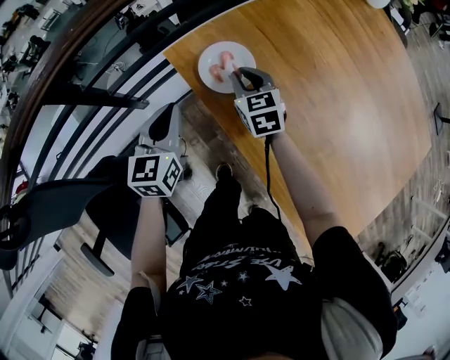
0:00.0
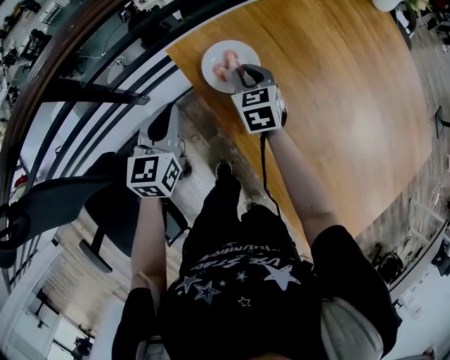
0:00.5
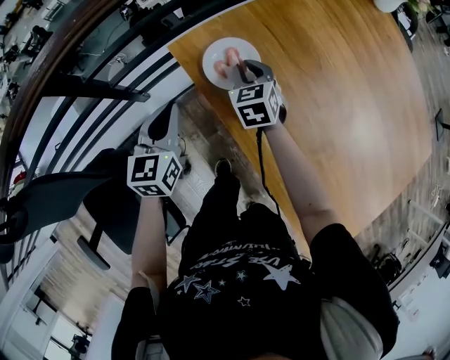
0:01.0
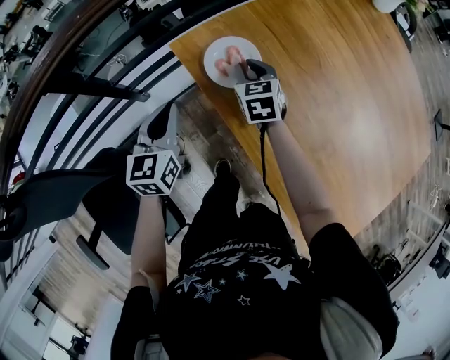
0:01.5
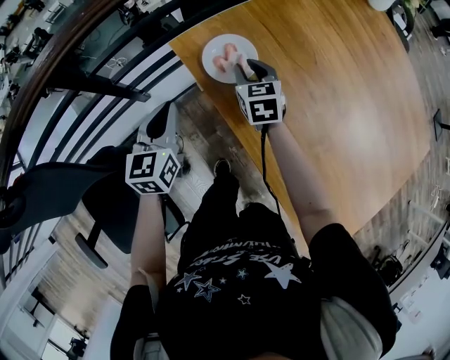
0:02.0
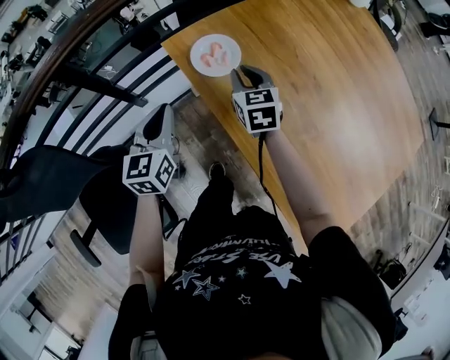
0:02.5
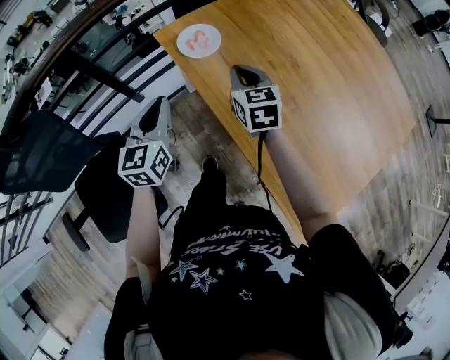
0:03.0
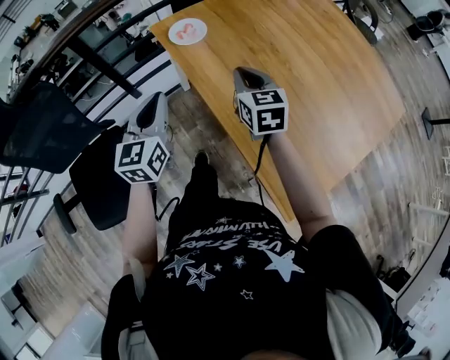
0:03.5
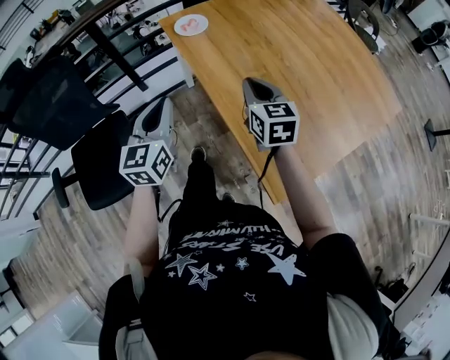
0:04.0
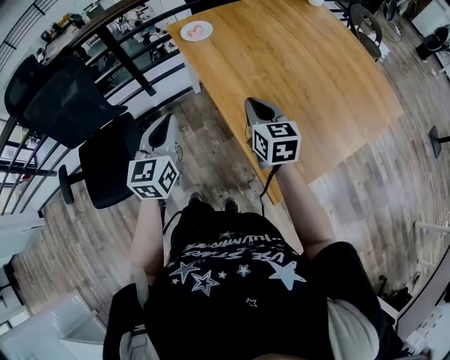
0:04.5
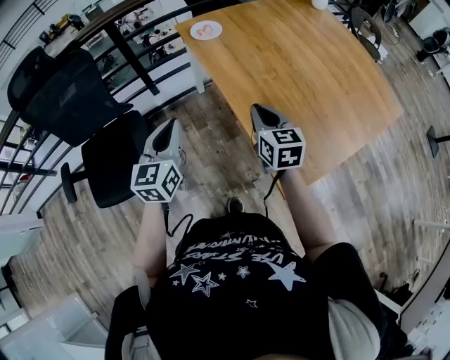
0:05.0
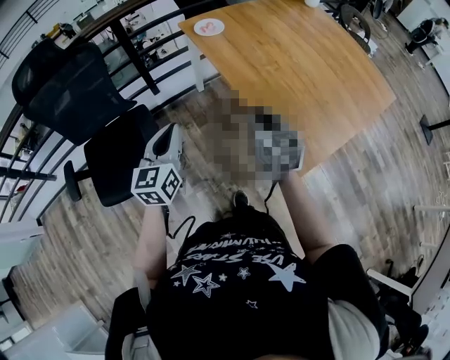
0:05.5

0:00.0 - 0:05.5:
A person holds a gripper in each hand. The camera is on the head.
0:00.0 - 0:02.0: The grippers make only small movements.
0:02.0 - 0:03.5: The two grippers go about 35 cm backward, upward and to the right. The right gripper closes its fingers.
0:03.5 - 0:05.5: The two grippers go some 30 cm backward.

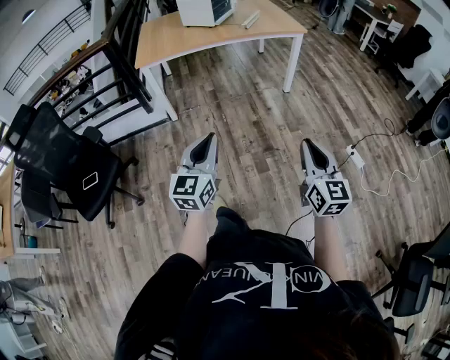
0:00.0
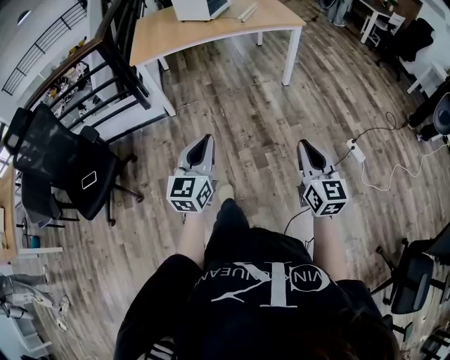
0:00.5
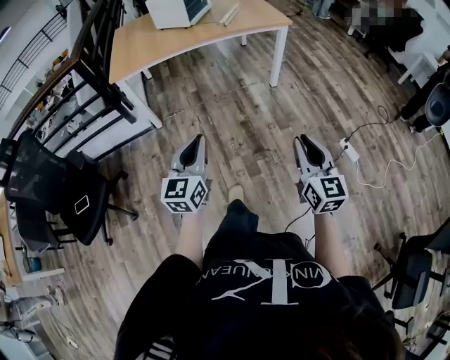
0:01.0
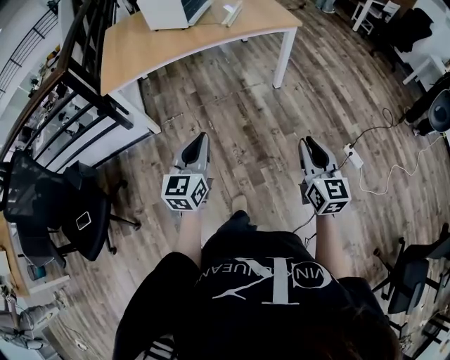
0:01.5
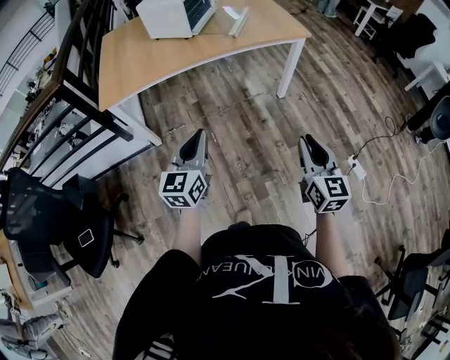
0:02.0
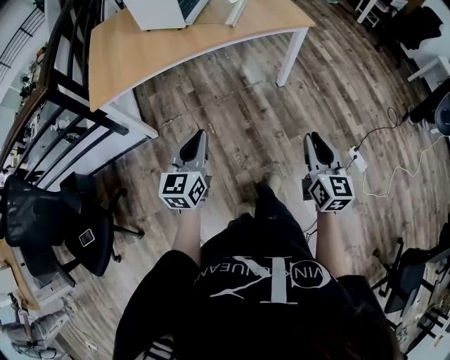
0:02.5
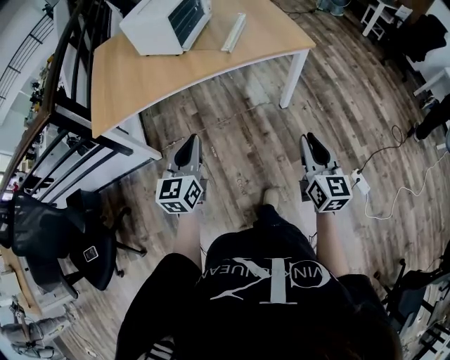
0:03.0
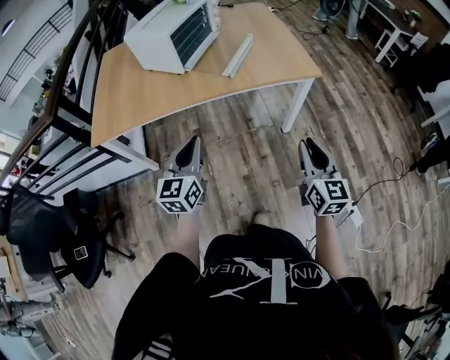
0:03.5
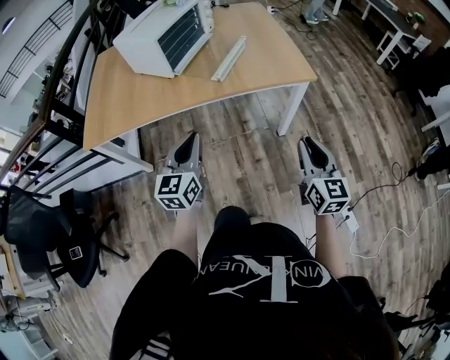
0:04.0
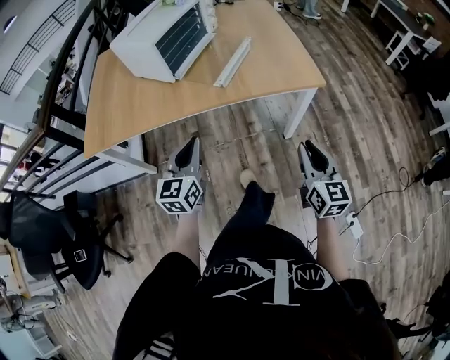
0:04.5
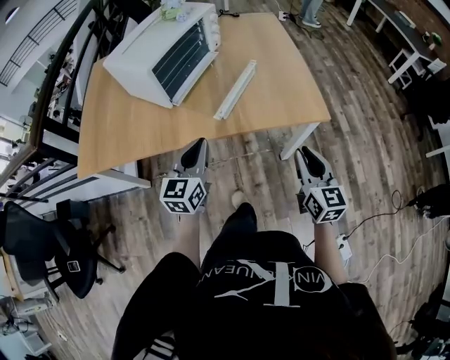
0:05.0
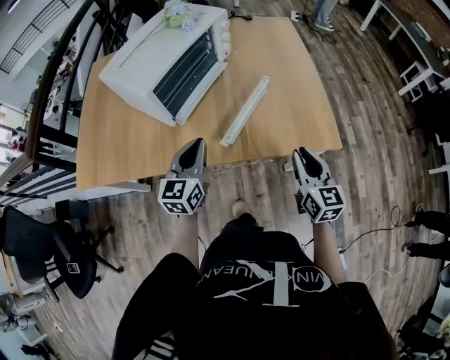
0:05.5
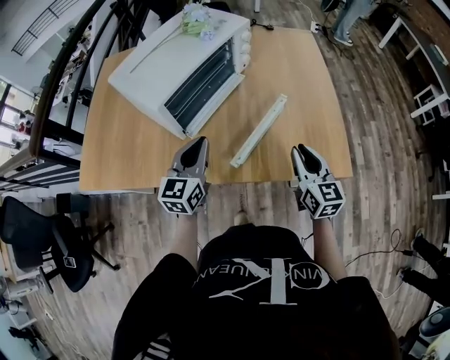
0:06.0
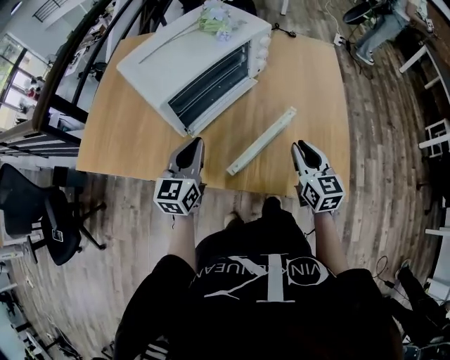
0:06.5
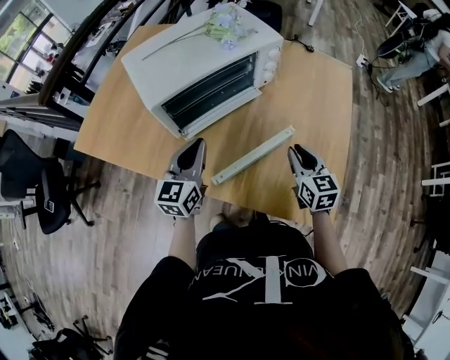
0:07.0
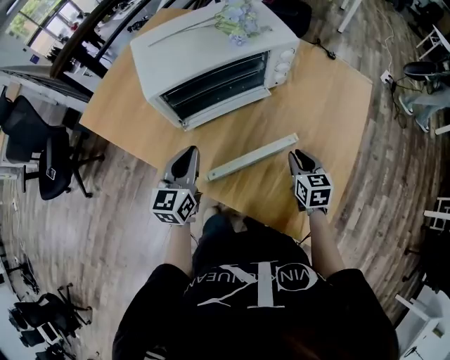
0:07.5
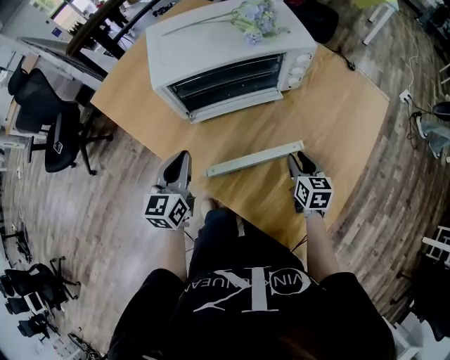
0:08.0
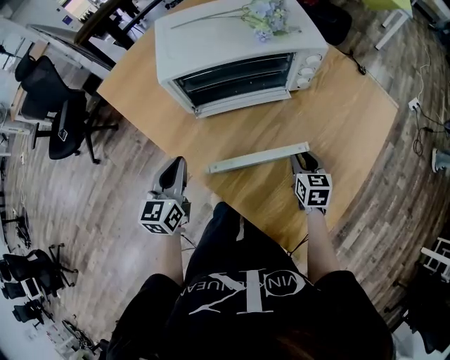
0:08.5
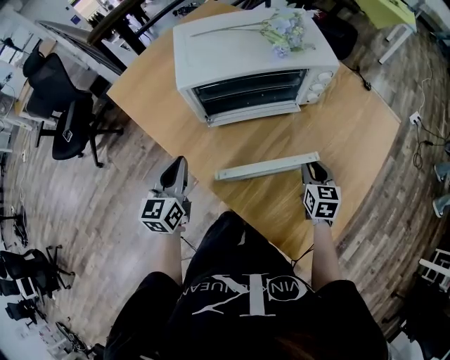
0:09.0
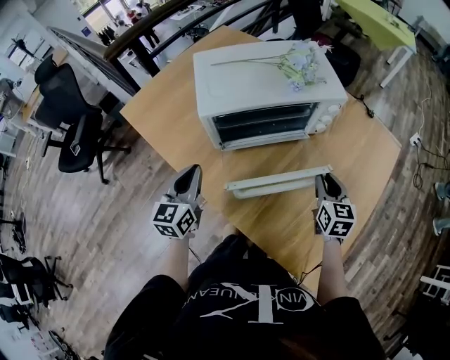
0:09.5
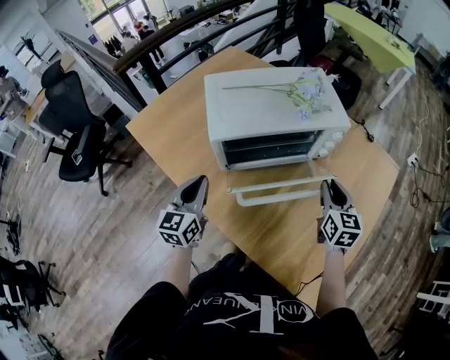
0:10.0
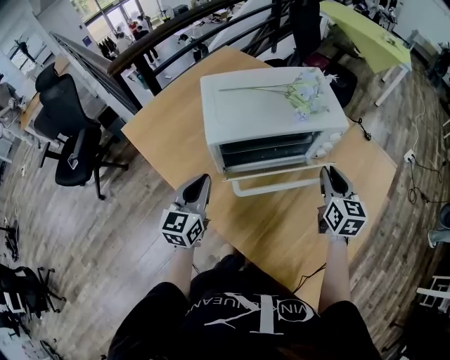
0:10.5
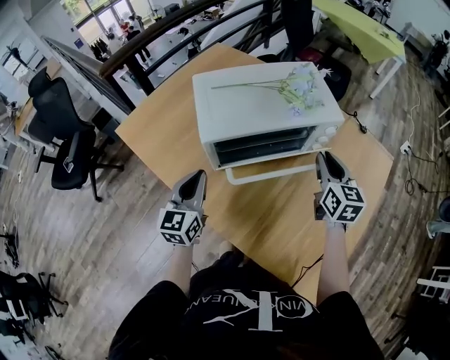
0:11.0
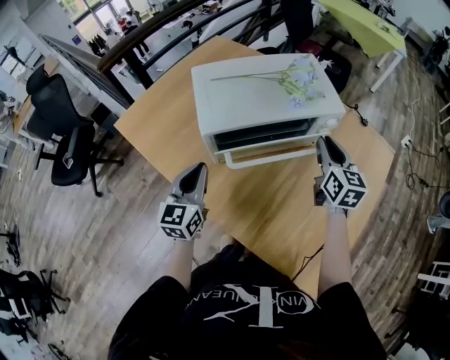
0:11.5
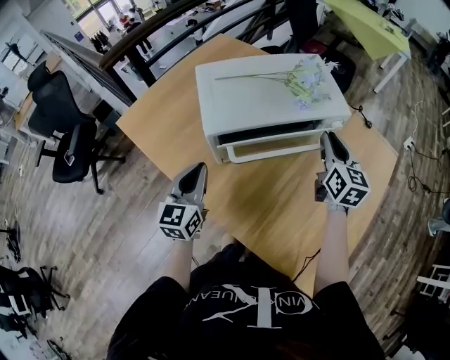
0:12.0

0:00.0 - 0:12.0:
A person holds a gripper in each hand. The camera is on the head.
0:00.0 - 0:02.0: The two grippers go some 35 cm forward.
0:02.0 - 0:04.0: Both grippers move forward and to the right, roughly 30 cm.
0:04.0 - 0:06.0: The grippers both shift forward by roughly 35 cm.
0:06.0 - 0:08.0: The left gripper swivels about 40 degrees. Meanwhile the right gripper shifts by approximately 25 cm, and swivels approximately 40 degrees.
0:08.0 - 0:10.0: The left gripper heads to the left and forward, covering about 10 cm; the right gripper is displaced upward and forward by about 20 cm.
0:10.0 - 0:12.0: The right gripper goes about 10 cm forward and upward.

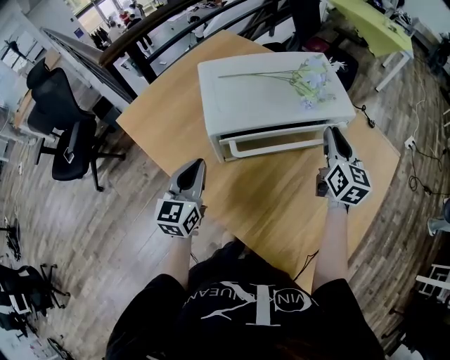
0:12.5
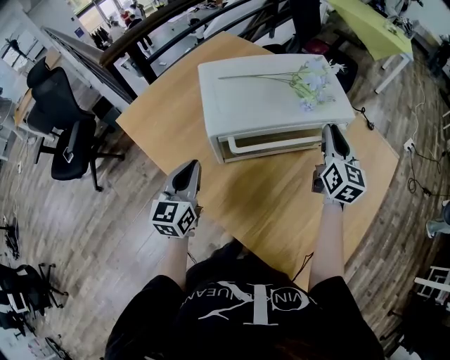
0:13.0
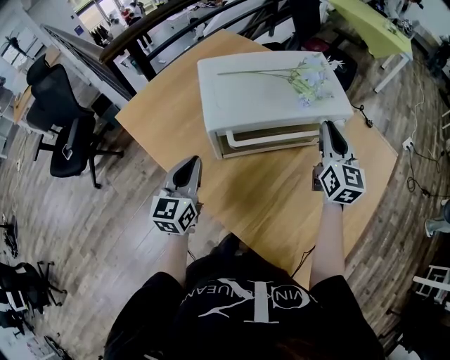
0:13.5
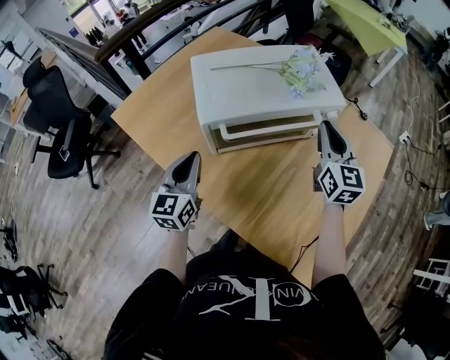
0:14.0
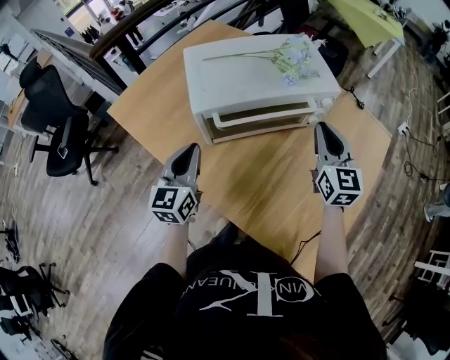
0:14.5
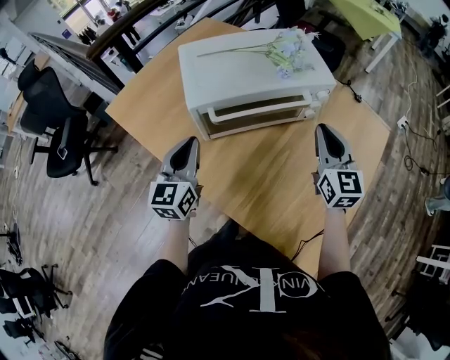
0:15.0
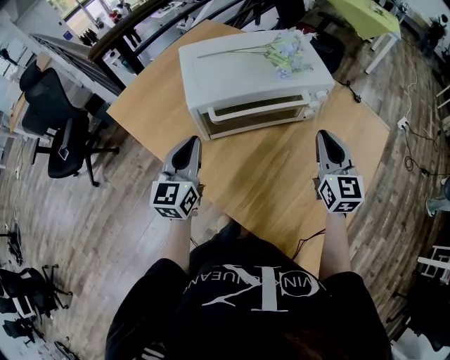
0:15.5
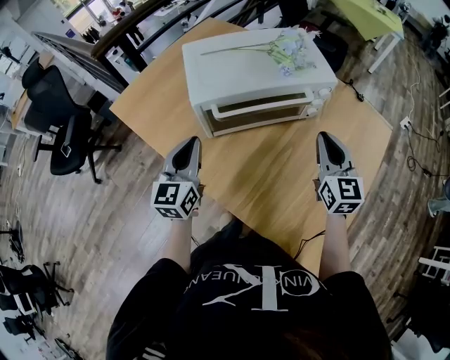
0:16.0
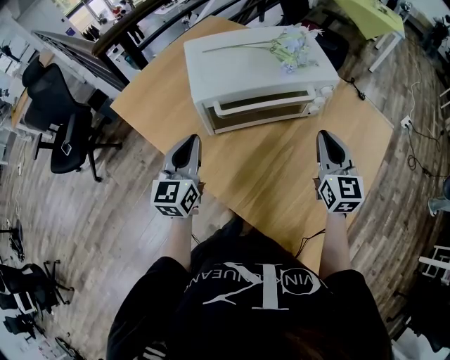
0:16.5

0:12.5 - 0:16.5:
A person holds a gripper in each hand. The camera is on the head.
0:12.5 - 0:14.5: The right gripper heads backward, covering about 5 cm.
0:14.5 - 0:16.5: The right gripper ends up approximately 5 cm from where it was.

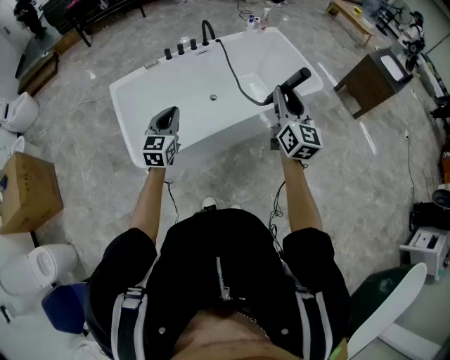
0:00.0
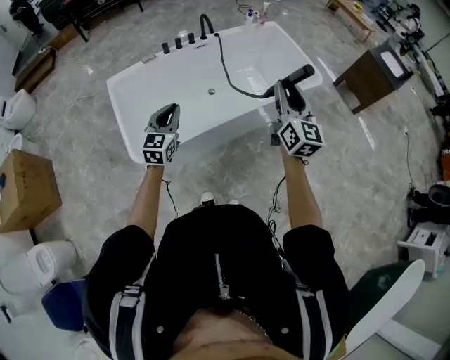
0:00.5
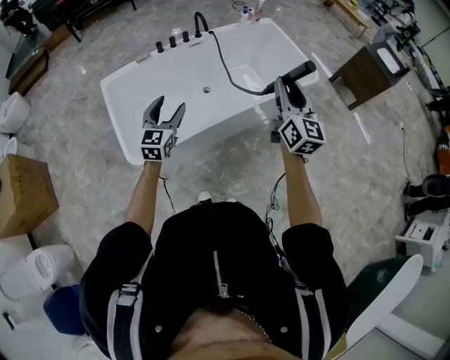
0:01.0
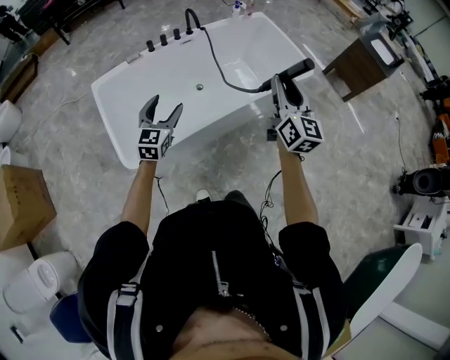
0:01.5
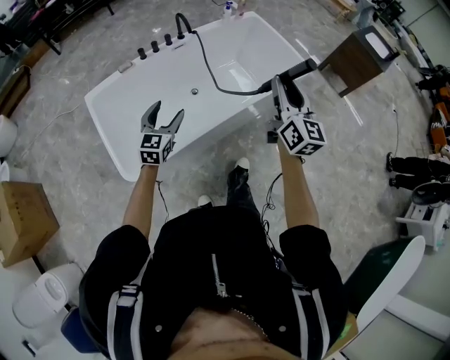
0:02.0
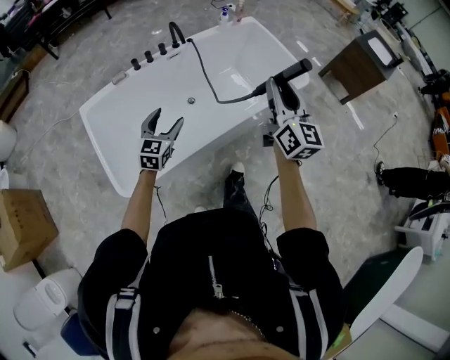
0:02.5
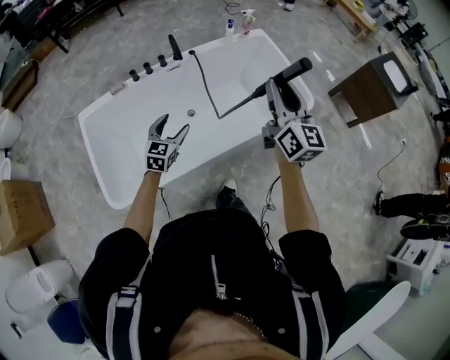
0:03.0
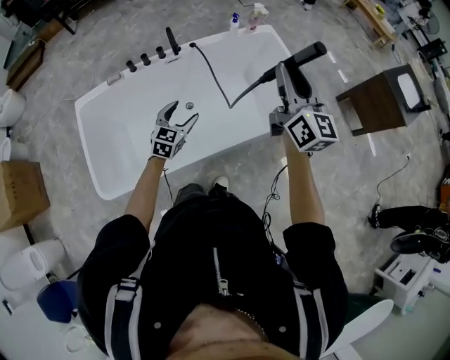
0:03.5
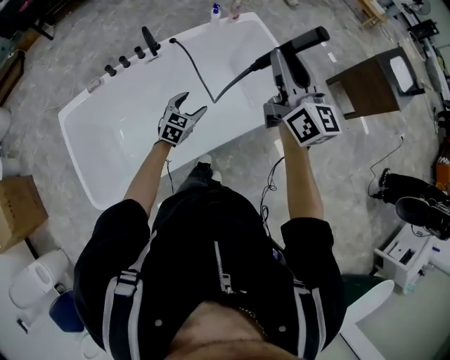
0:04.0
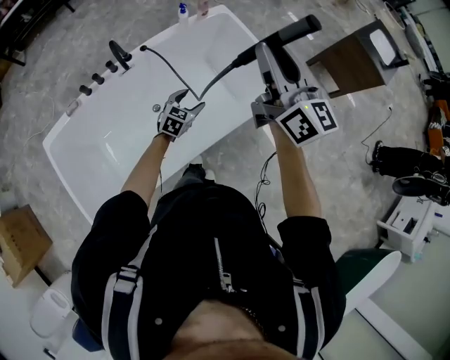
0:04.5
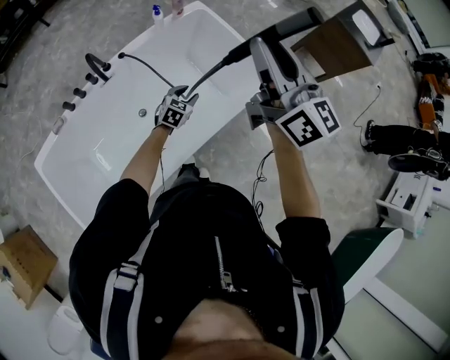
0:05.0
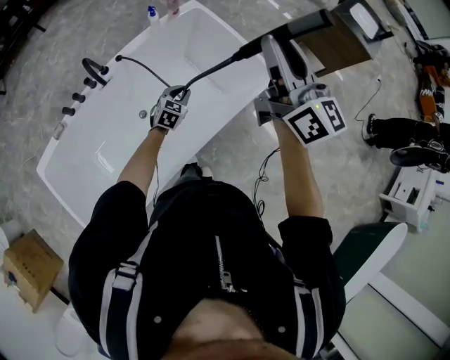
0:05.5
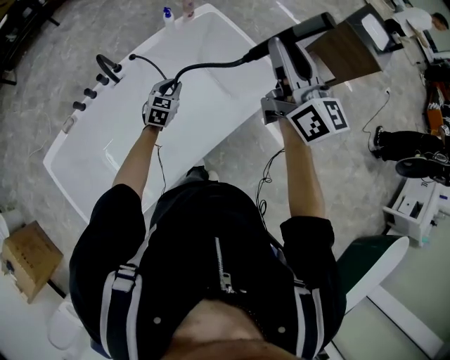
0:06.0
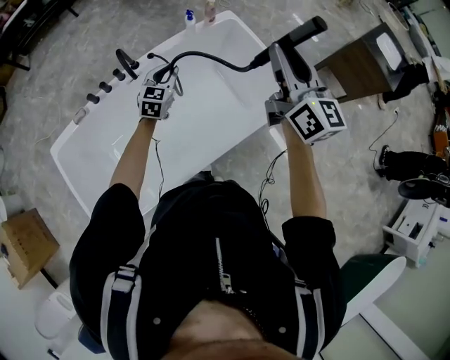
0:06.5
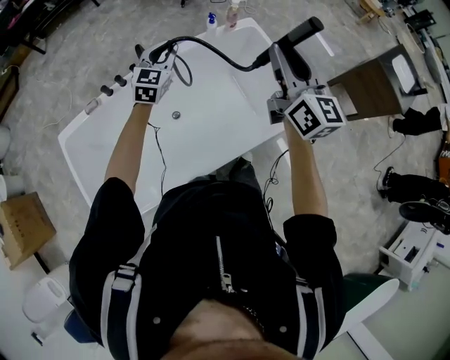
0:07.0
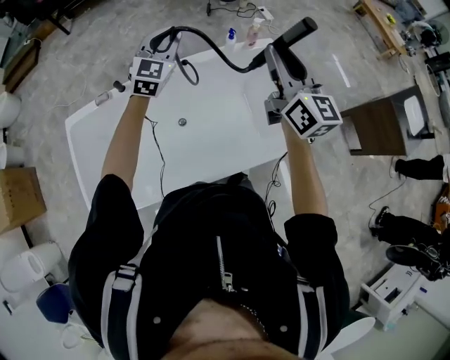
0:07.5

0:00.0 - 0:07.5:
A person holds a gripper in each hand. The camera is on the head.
0:00.0 - 0:02.0: The left gripper travels forward by approximately 10 cm, and opens its fingers. The right gripper changes place by about 5 cm.
0:02.0 - 0:04.0: The left gripper is displaced forward and to the right by some 40 cm, and rotates approximately 20 degrees, while the right gripper is displaced forward by roughly 35 cm.
0:04.0 - 0:05.5: The right gripper goes roughly 5 cm to the right; the left gripper goes roughly 15 cm forward, to the right and downward, and closes its fingers.
0:05.5 - 0:07.5: The right gripper ends up some 20 cm from where it was, and rotates approximately 20 degrees. The left gripper heads upward, covering roughly 35 cm, and tips its fingers upward by approximately 30 degrees.
